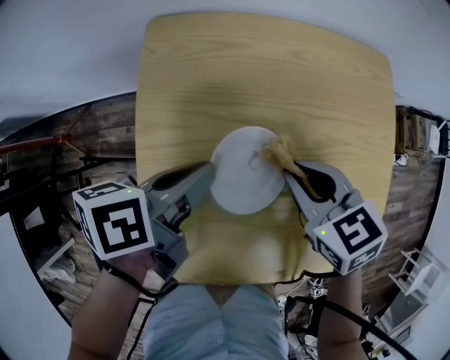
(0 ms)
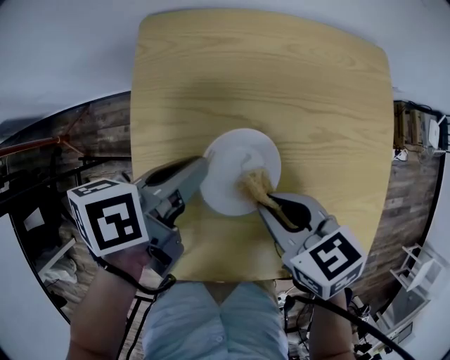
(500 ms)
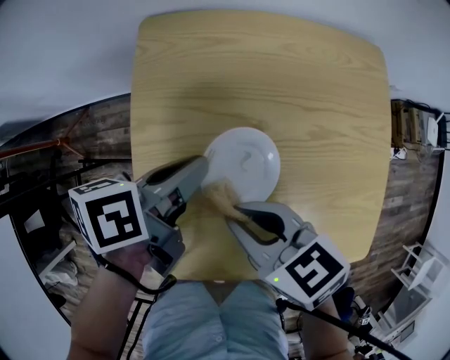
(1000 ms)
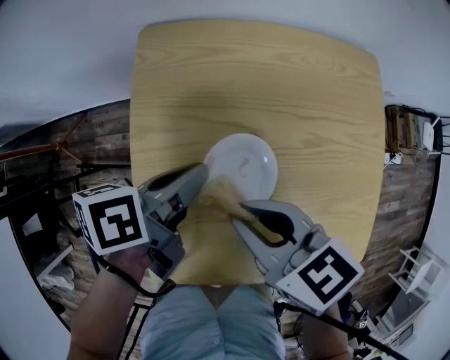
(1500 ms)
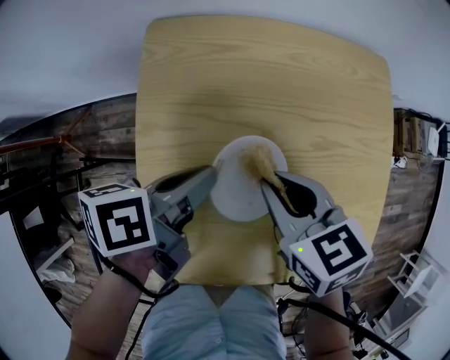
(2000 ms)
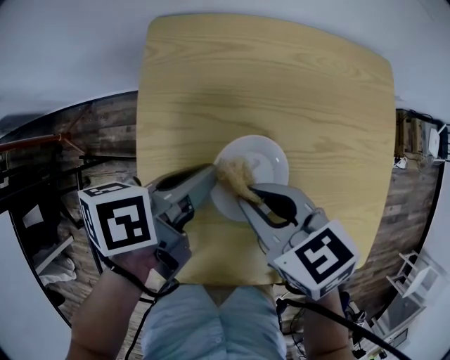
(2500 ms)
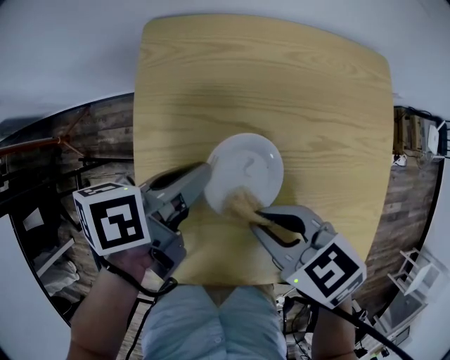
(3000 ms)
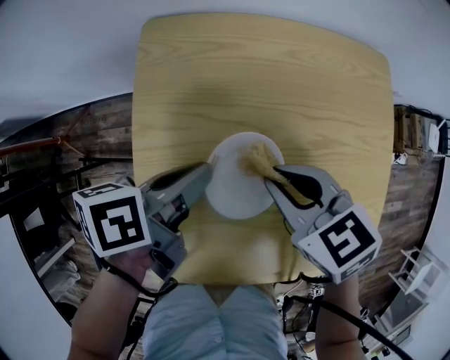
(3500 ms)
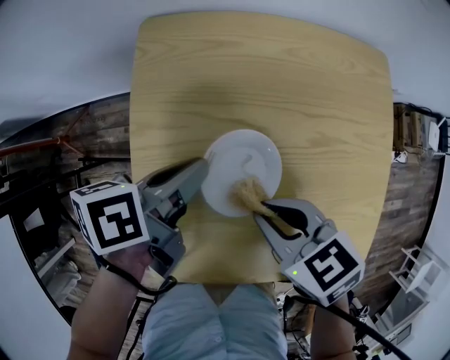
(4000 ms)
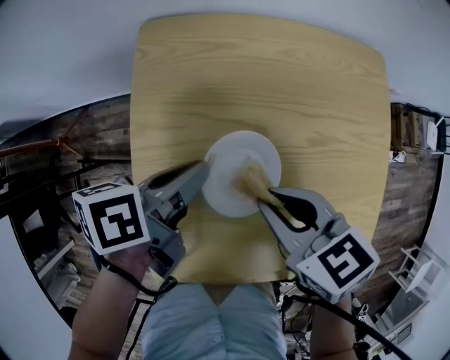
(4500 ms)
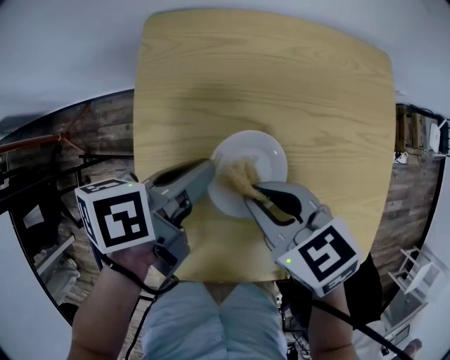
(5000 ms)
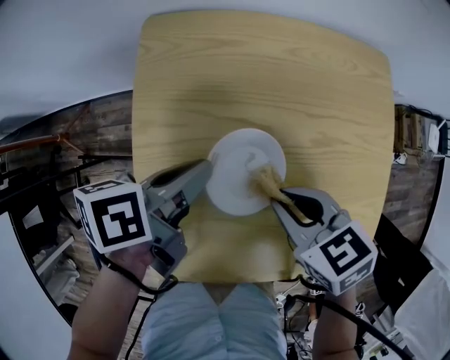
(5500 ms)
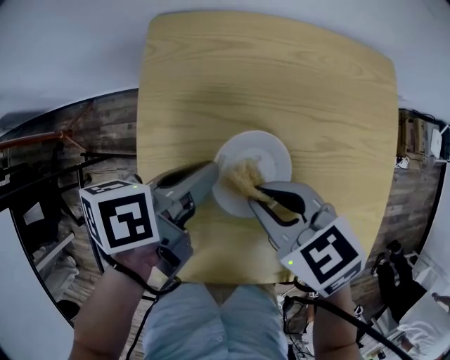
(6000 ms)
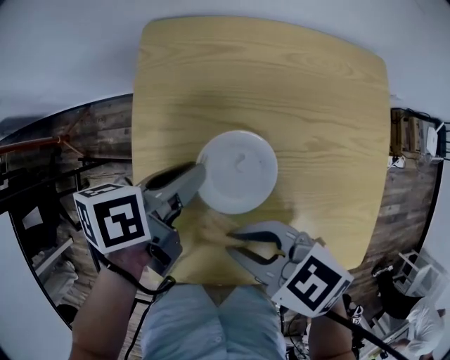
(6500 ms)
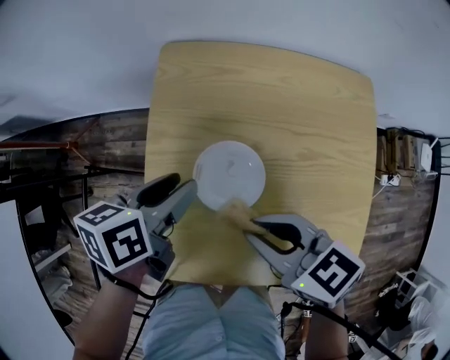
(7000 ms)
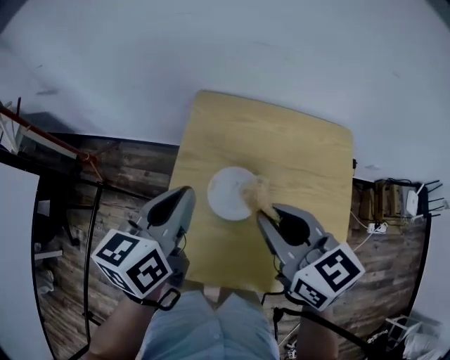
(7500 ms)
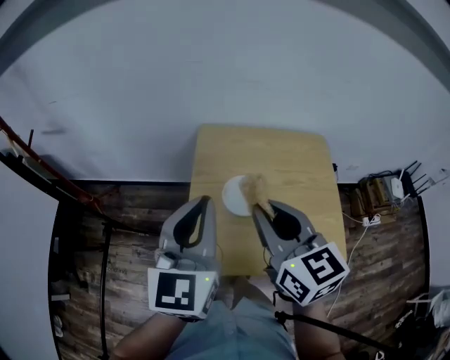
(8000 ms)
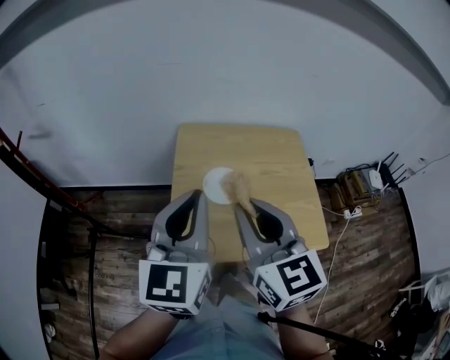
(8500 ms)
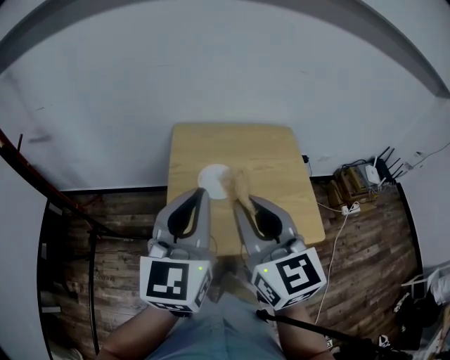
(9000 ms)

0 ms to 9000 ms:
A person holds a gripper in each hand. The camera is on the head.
4500 ms to 7000 ms: The left gripper opens up.
7000 ms to 9000 ms: Both grippers move upward and backward, about 30 cm. The right gripper rotates about 60 degrees, while the left gripper tilts its fingers about 40 degrees upward, and closes its fingers.

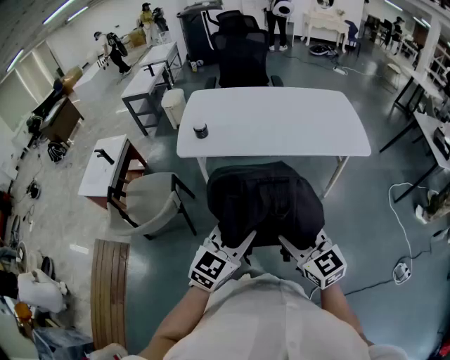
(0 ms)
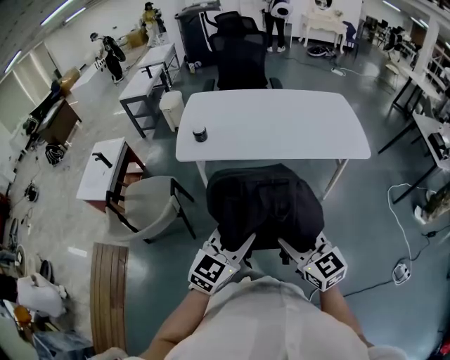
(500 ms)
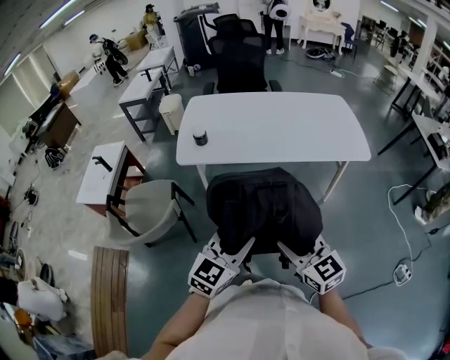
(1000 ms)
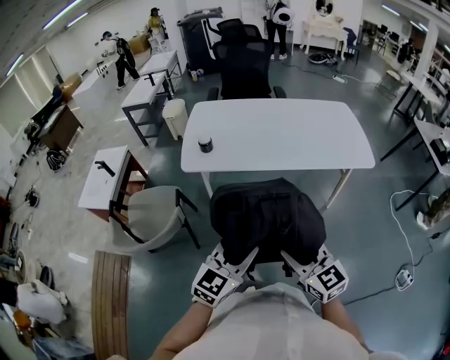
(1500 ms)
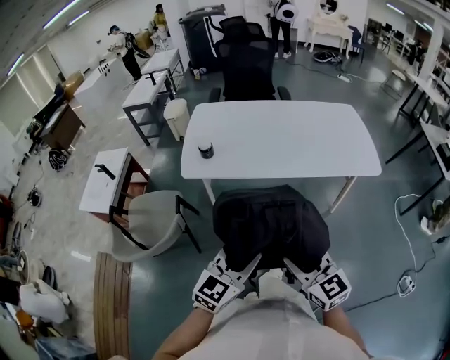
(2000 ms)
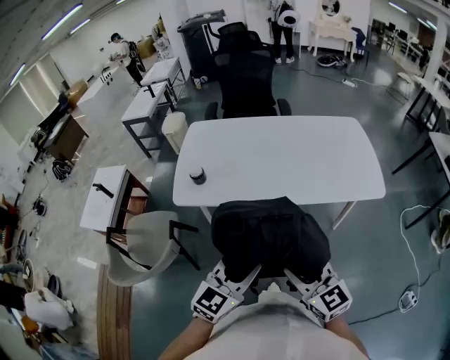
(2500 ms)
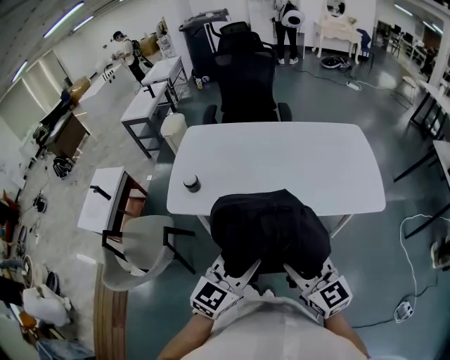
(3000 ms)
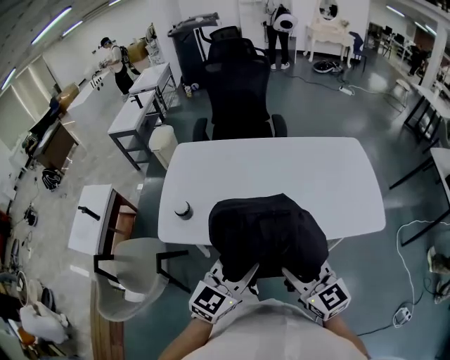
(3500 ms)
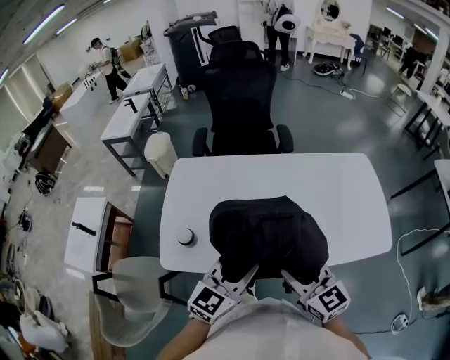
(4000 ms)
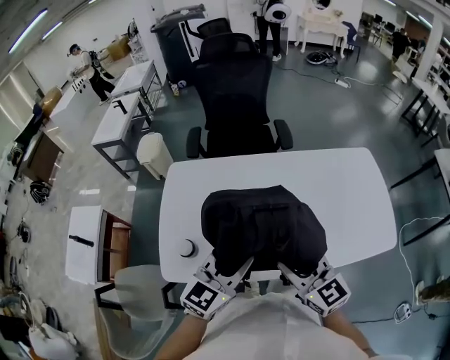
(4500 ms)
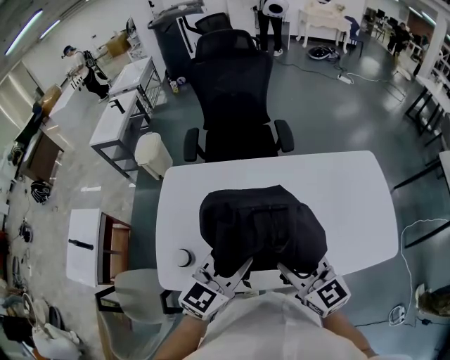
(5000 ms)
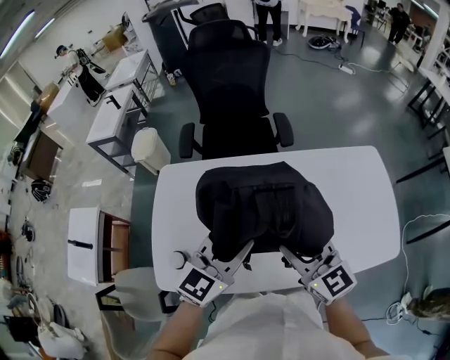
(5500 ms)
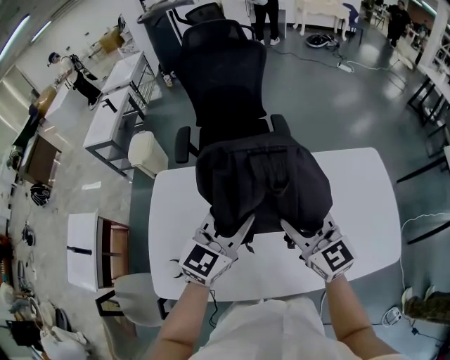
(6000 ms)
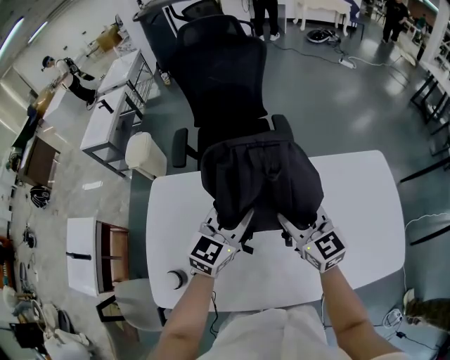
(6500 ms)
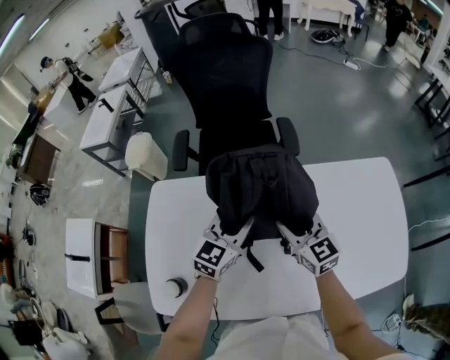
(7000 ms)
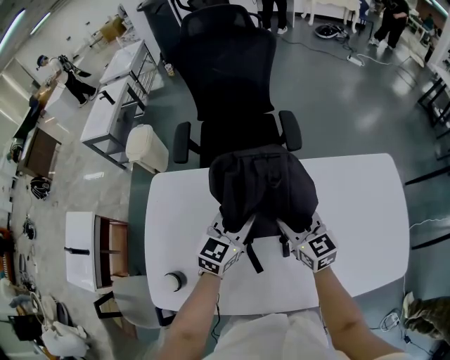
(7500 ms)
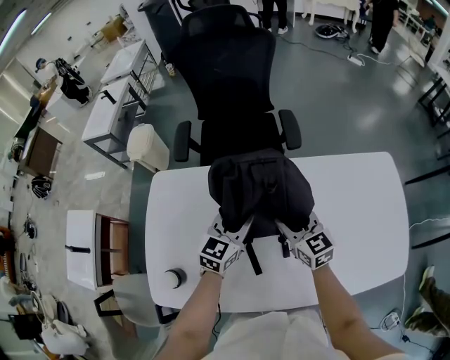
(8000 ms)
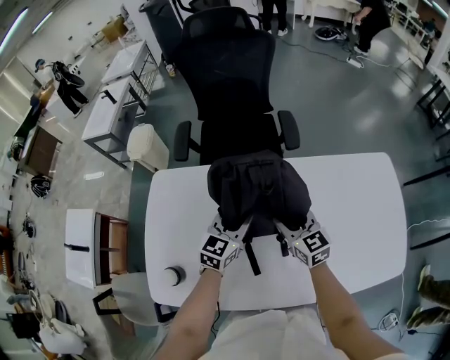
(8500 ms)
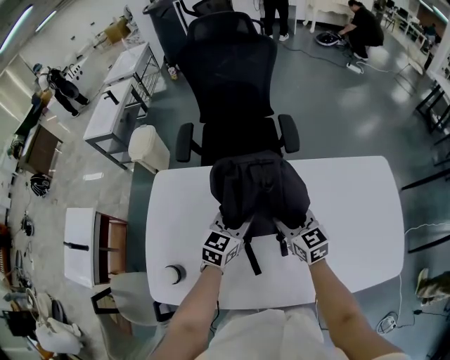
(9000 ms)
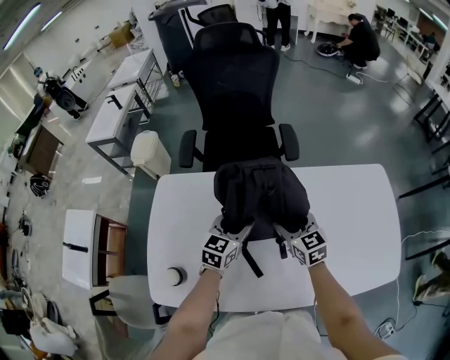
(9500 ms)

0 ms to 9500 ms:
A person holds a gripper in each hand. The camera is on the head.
0 ms to 2000 ms: Both grippers move forward, about 5 cm.
2000 ms to 4000 ms: Both grippers move forward, approximately 40 cm.
4000 ms to 5500 ms: Both grippers travel together forward, some 15 cm.
5500 ms to 7500 ms: The grippers both shift forward and downward by about 25 cm.
7500 ms to 9500 ms: The left gripper opens.

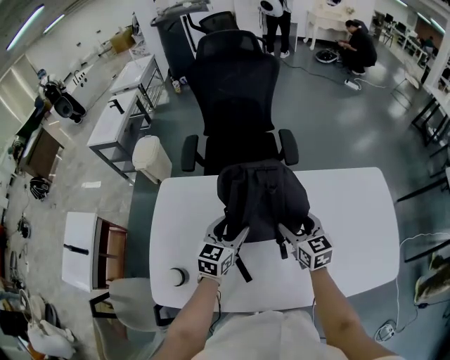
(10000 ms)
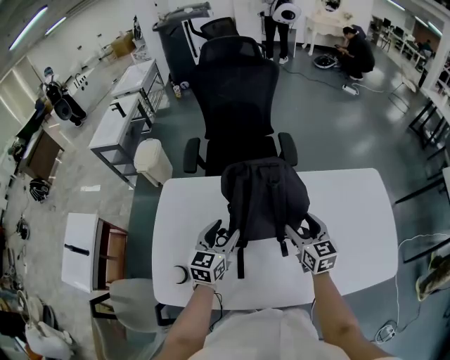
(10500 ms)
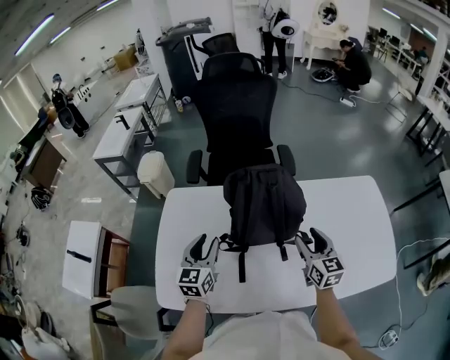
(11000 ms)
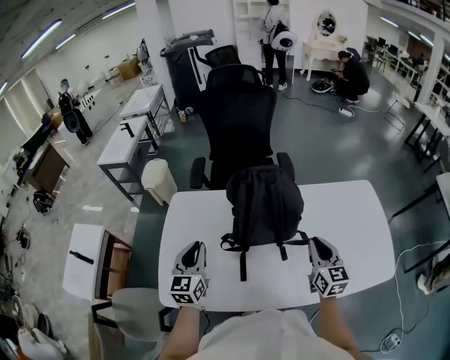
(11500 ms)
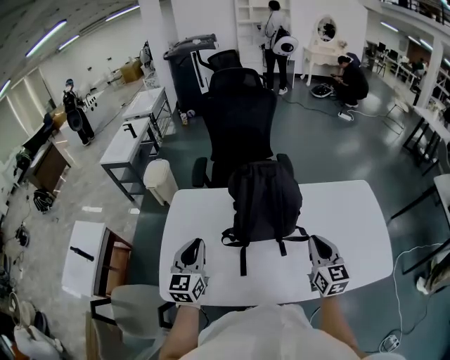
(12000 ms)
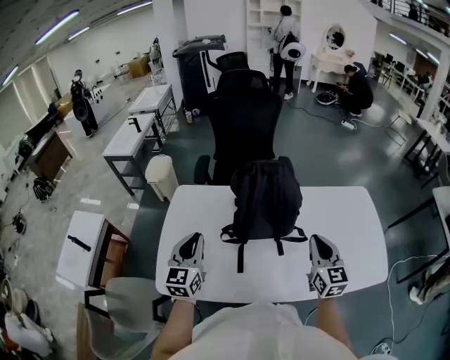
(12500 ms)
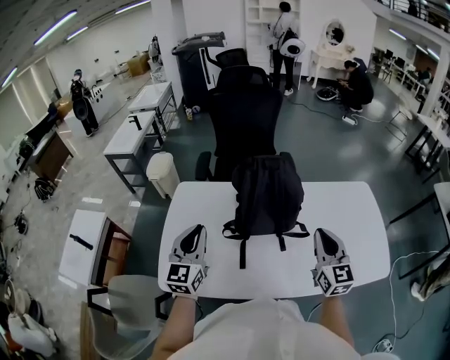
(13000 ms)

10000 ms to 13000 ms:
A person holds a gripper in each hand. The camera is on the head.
10000 ms to 11500 ms: The right gripper heads backward, to the right and upward, covering roughly 15 cm, and closes; the left gripper shifts about 20 cm to the left, backward and upward, changes its angle by about 20 degrees, and closes.
11500 ms to 13000 ms: Both grippers move upward, some 10 cm.

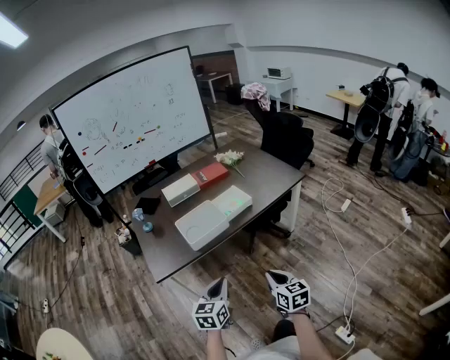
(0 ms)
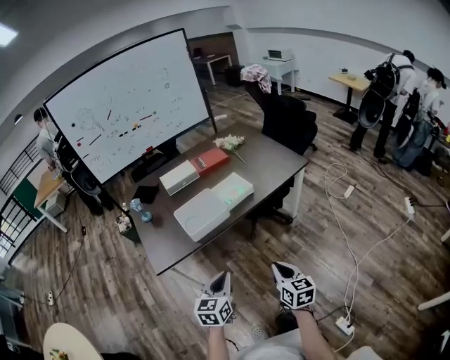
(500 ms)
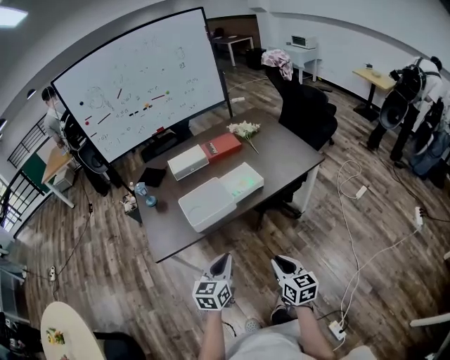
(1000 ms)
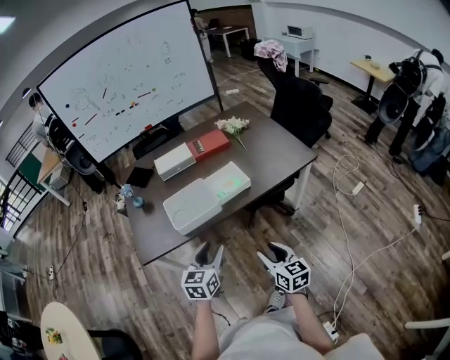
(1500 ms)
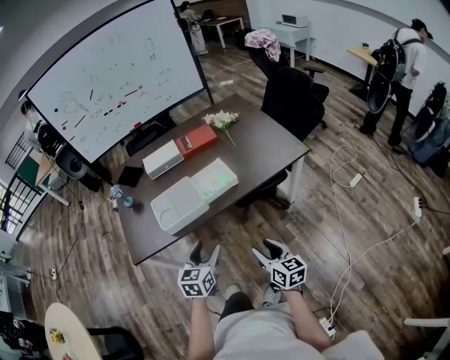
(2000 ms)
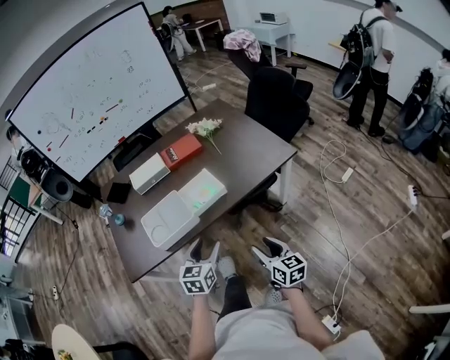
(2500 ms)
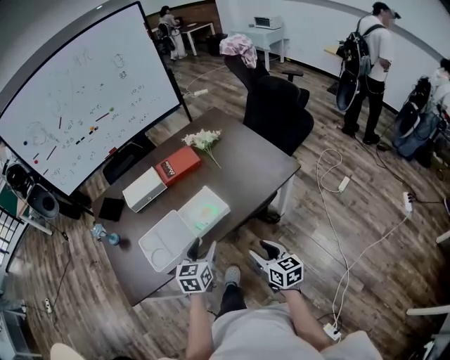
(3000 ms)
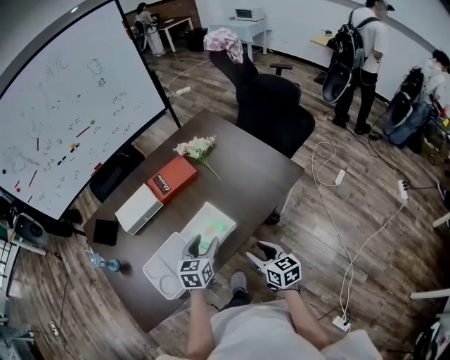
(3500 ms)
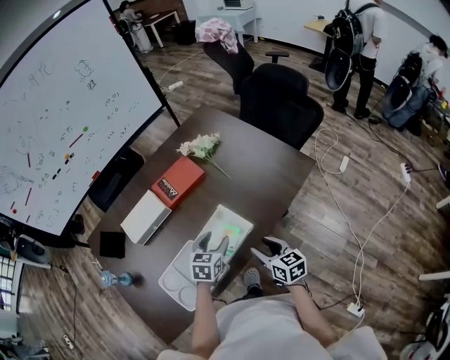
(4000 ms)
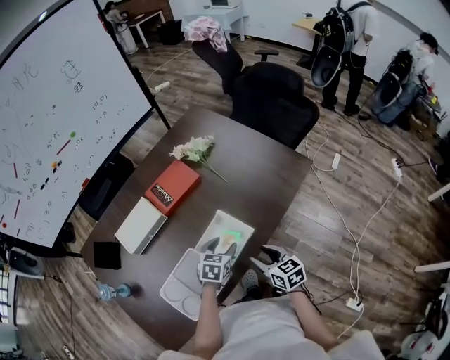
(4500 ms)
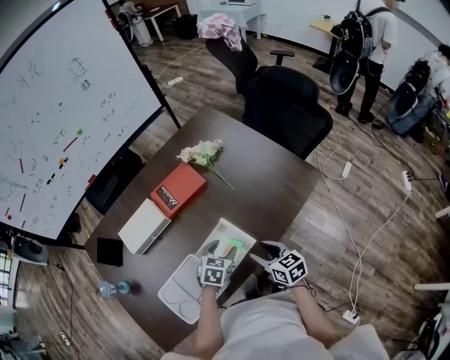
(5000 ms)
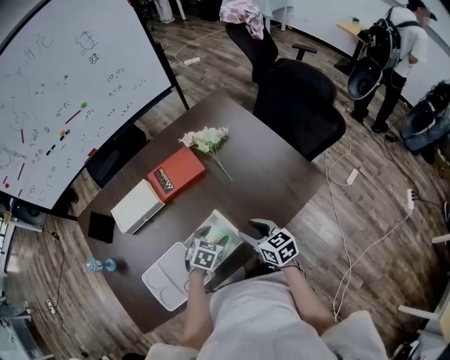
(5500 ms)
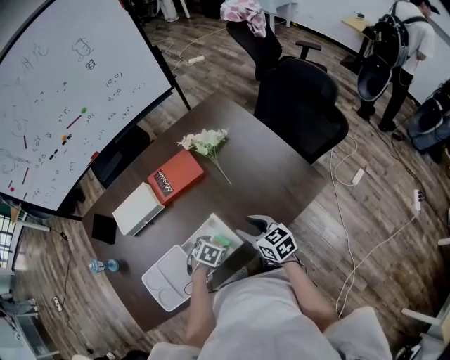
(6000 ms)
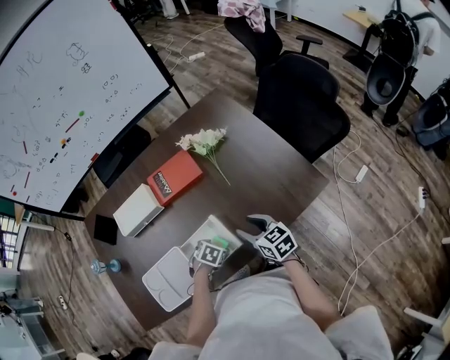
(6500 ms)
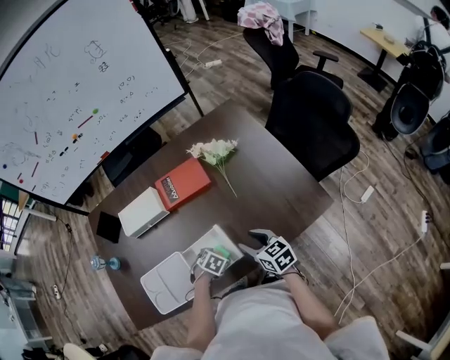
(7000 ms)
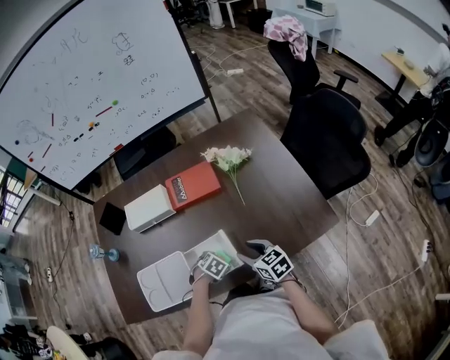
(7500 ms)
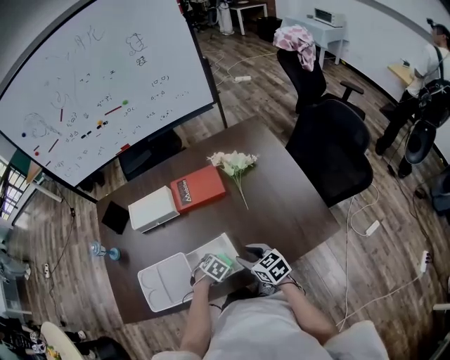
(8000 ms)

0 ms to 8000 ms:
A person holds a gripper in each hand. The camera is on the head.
0 ms to 2000 ms: The grippers both shift forward and to the right by roughly 20 cm. The left gripper opens; the right gripper opens up.
2000 ms to 4000 ms: Both grippers move forward, about 35 cm. The left gripper swivels some 30 degrees.
4000 ms to 6000 ms: The right gripper goes roughly 15 cm forward, and rotates approximately 20 degrees. Meanwhile the left gripper is displaced downward by some 15 cm, and tips its fingers downward by about 30 degrees.
